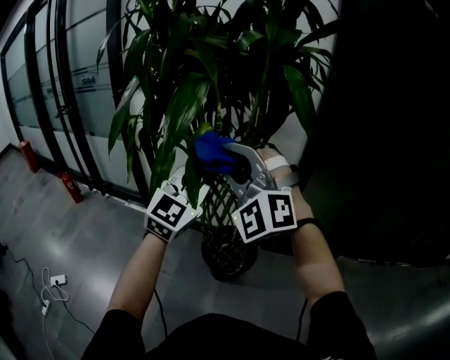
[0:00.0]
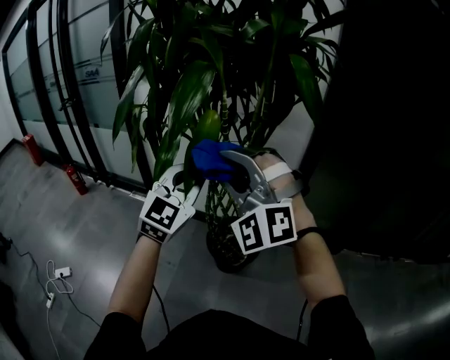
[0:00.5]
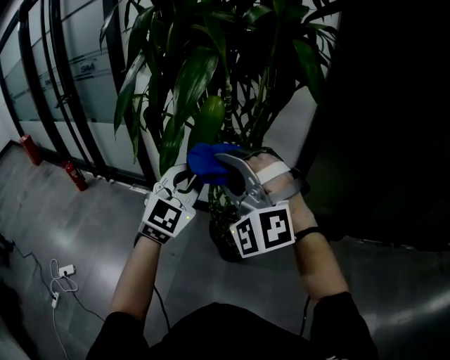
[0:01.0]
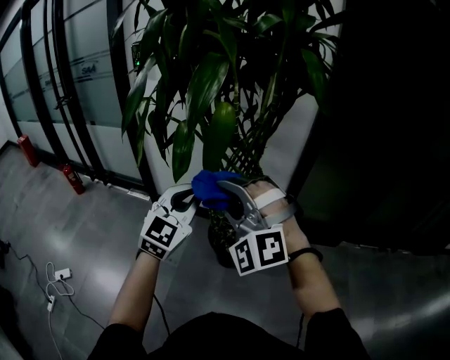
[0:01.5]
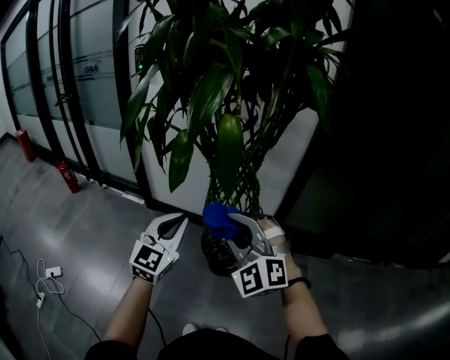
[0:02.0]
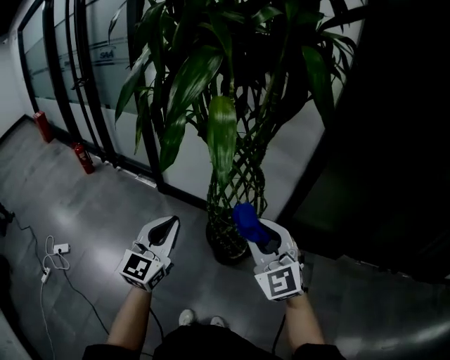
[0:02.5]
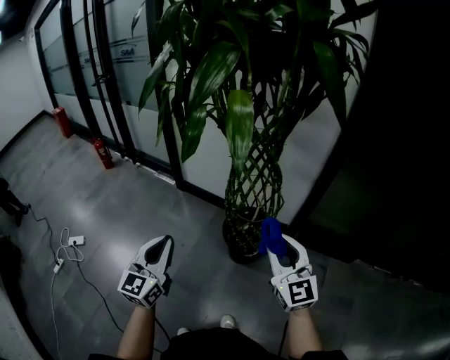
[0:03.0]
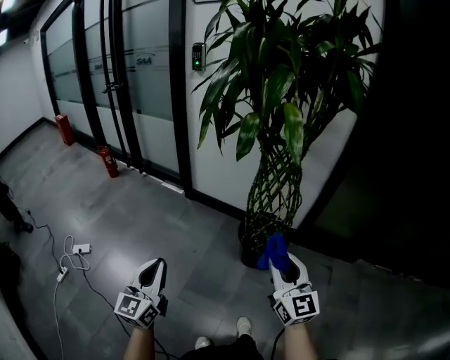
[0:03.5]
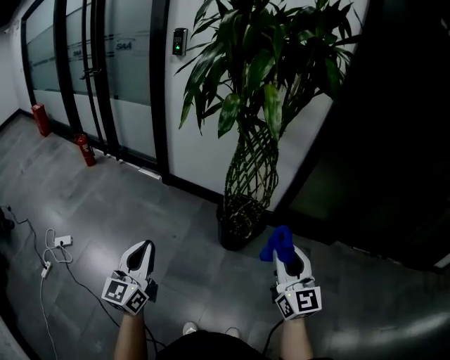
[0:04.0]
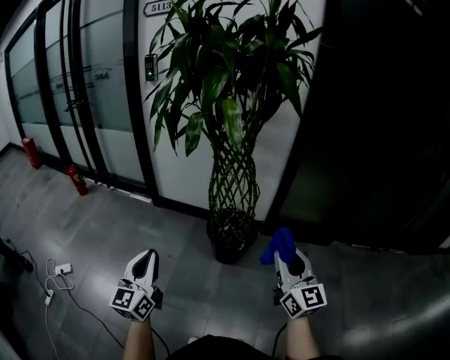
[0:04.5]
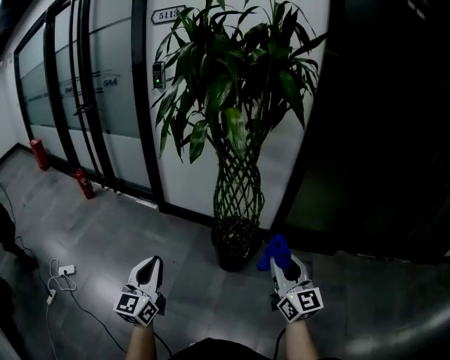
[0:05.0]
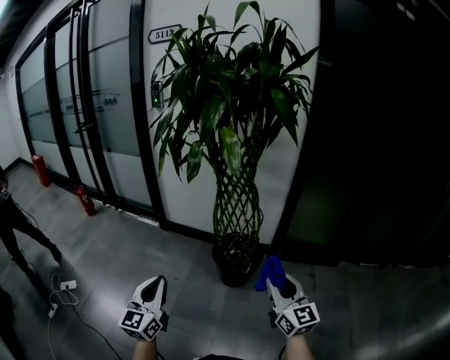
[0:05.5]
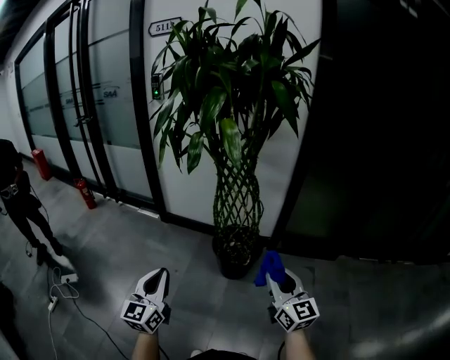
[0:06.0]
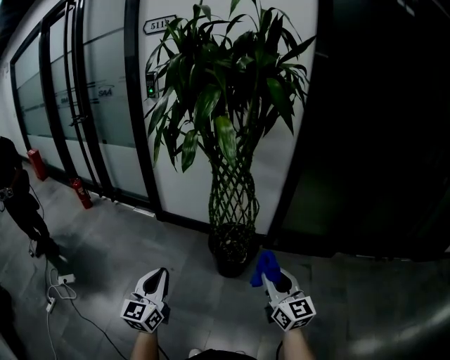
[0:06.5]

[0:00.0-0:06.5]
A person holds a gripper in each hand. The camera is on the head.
0:00.0 to 0:02.0: The left gripper goes approximately 20 cm downward, to the left and backward, while the right gripper travels downward and backward by approximately 15 cm.
0:02.0 to 0:04.5: The left gripper is displaced backward and to the left by about 30 cm, and turns by roughly 30 degrees. Meanwhile the right gripper moves backward and to the right, roughly 25 cm, and twists roughly 60 degrees clockwise, seen from behind.
0:04.5 to 0:06.5: The right gripper is displaced downward by some 5 cm.

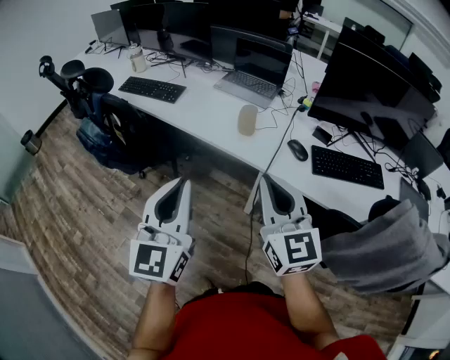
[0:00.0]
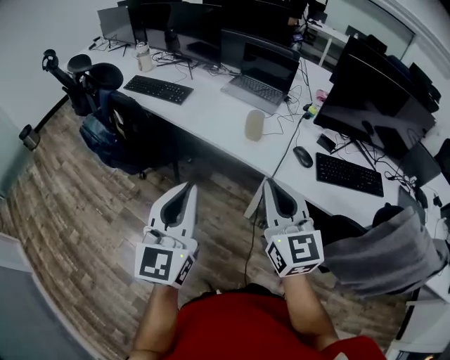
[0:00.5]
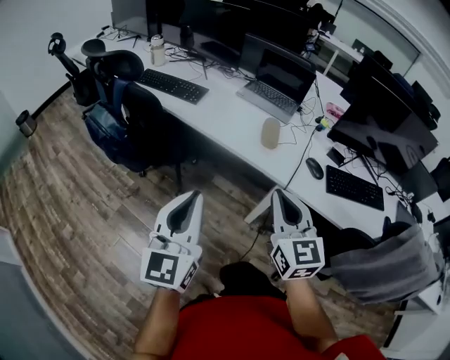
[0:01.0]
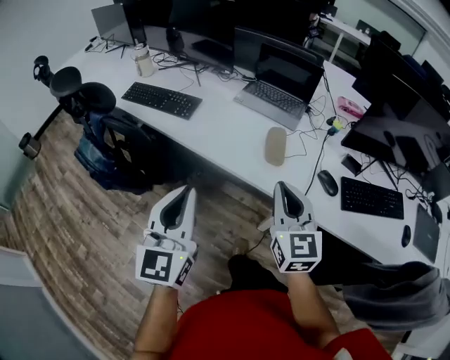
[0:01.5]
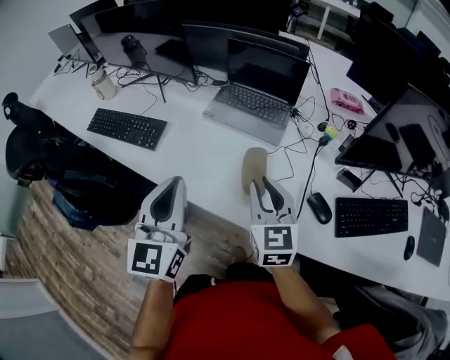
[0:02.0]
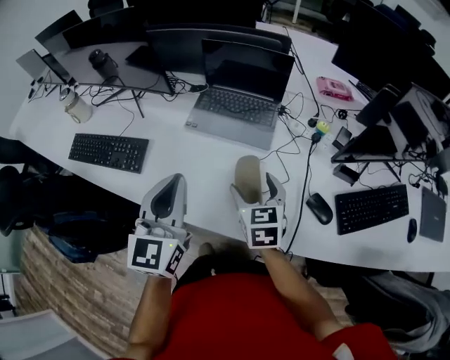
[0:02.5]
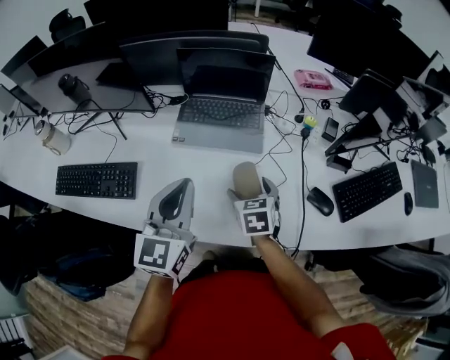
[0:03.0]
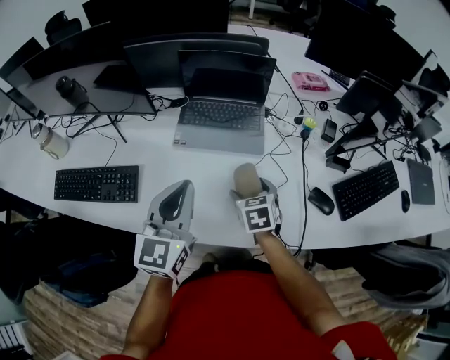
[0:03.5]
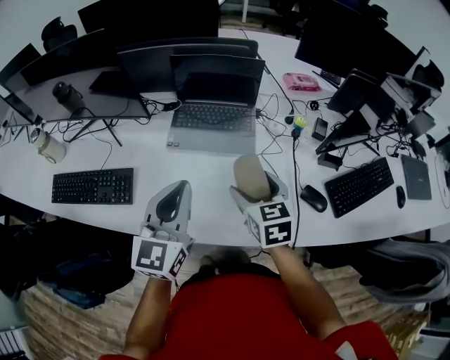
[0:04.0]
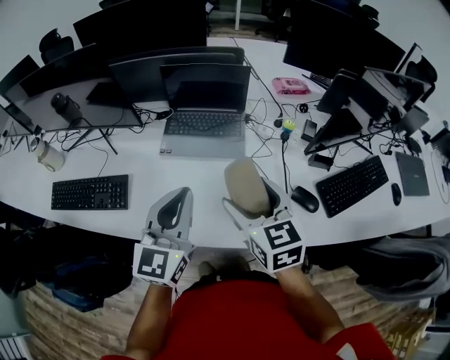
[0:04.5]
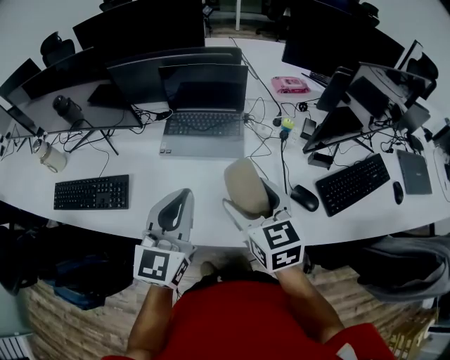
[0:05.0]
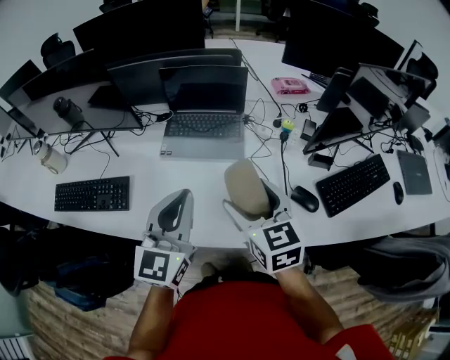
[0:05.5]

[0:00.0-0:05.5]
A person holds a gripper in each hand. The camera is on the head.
0:00.0 to 0:02.0: The two grippers go approximately 35 cm forward.
0:02.0 to 0:03.5: The left gripper travels forward by approximately 15 cm, and turns by roughly 30 degrees, while the right gripper is displaced downward and forward by some 20 cm, points its fingers about 30 degrees further downward, and opens.
0:03.5 to 0:05.5: The right gripper goes some 20 cm upward, and swivels about 30 degrees. The left gripper goes some 5 cm to the right.

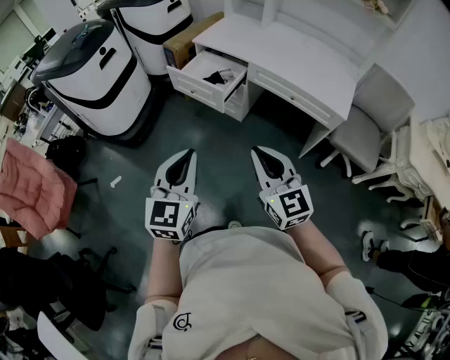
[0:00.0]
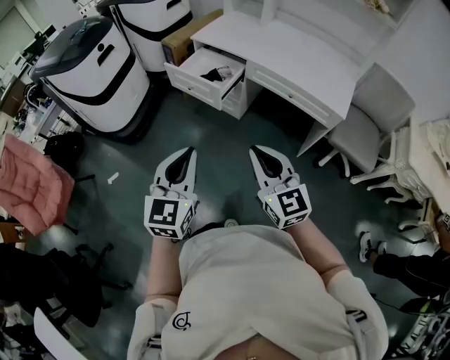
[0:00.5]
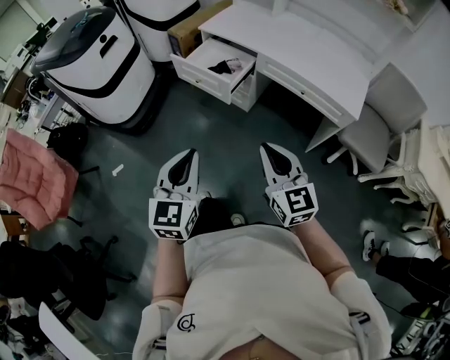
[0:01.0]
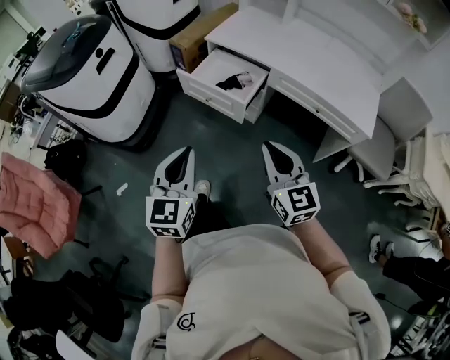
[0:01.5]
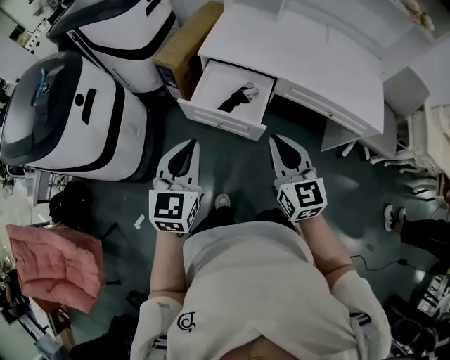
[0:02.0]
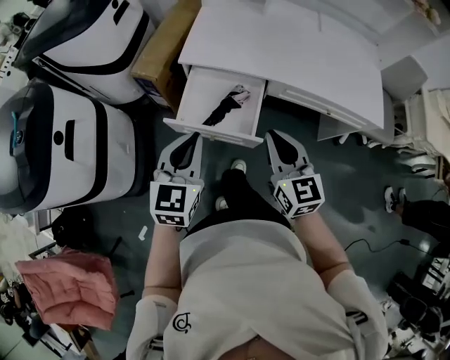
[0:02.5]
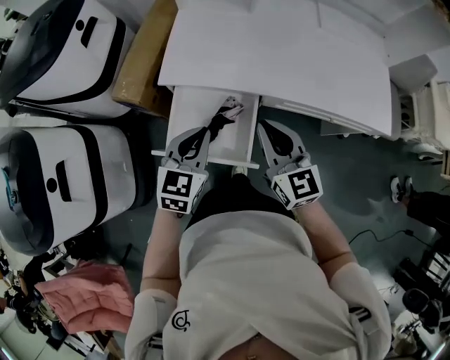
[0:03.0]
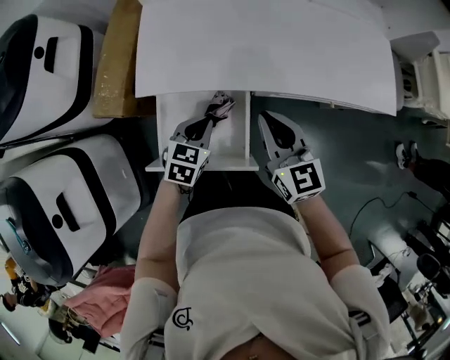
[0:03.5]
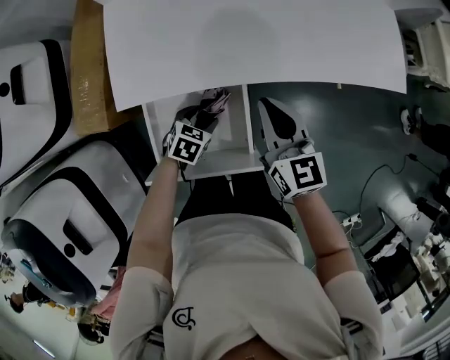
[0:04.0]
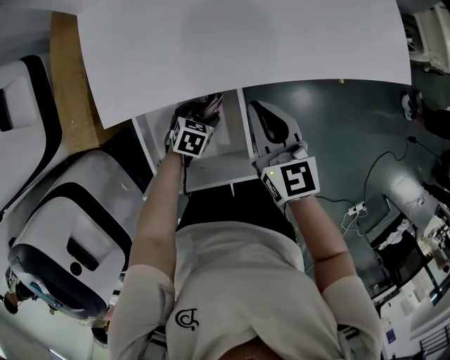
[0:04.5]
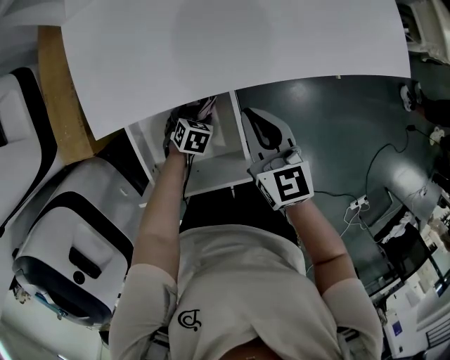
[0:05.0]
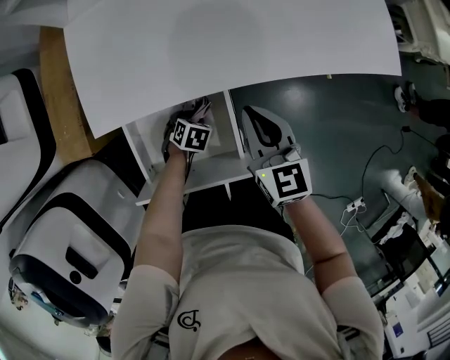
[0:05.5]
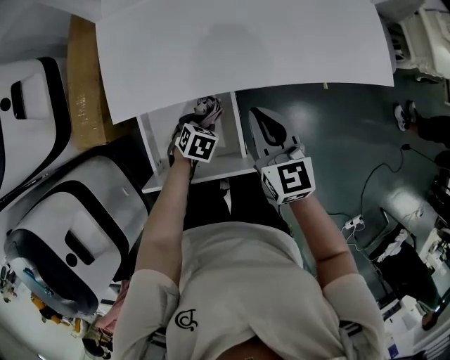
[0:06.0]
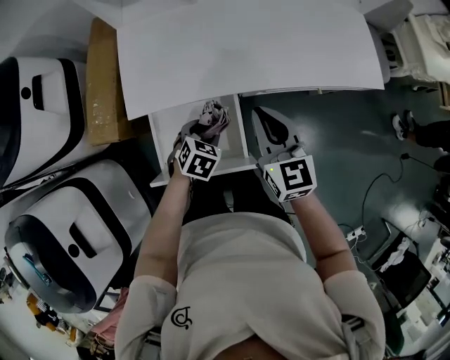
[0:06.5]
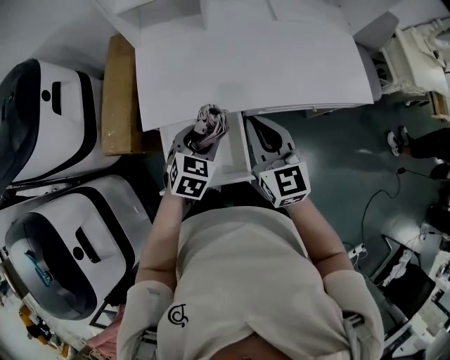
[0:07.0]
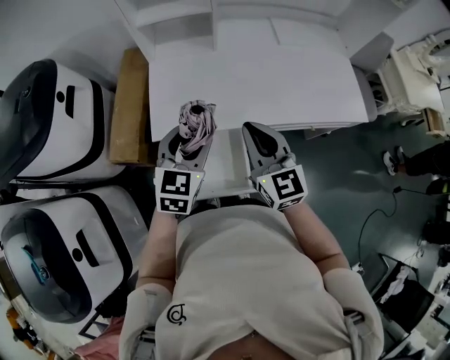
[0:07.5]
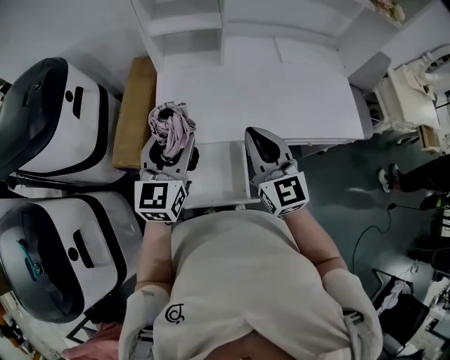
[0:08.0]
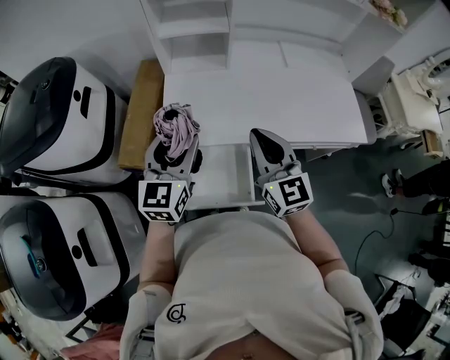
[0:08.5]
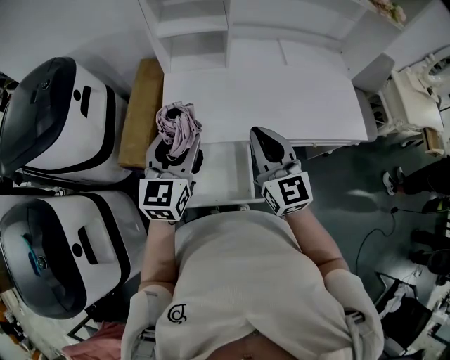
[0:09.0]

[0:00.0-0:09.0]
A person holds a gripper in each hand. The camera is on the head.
0:00.0 to 0:02.0: The right gripper travels forward by some 35 cm, and swivels some 20 degrees. The left gripper shifts some 40 cm forward and to the left.
0:02.0 to 0:04.5: The right gripper shifts by roughly 40 cm, and rotates some 30 degrees; the left gripper travels downward by roughly 40 cm, angles its fingers downward, by roughly 50 degrees, and opens up.
0:04.5 to 0:07.0: The left gripper goes about 30 cm upward, and rotates roughly 30 degrees; the right gripper travels upward by about 15 cm.
0:07.0 to 0:09.0: The left gripper moves upward and to the left, about 20 cm, and tilts its fingers about 40 degrees upward. The right gripper goes approximately 10 cm upward.

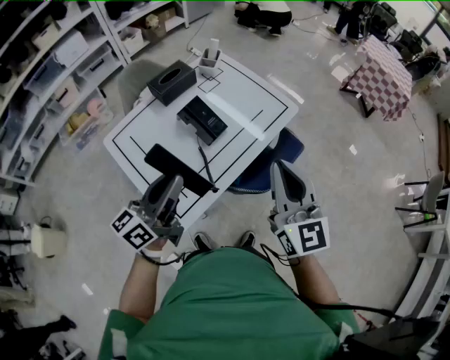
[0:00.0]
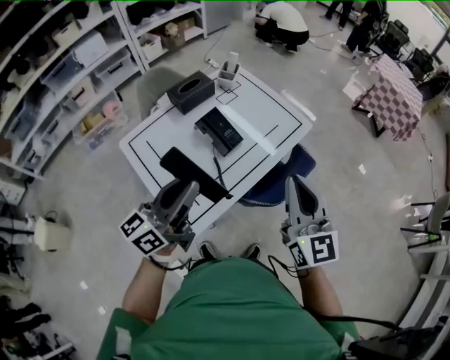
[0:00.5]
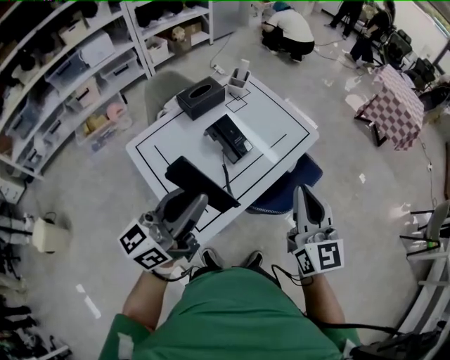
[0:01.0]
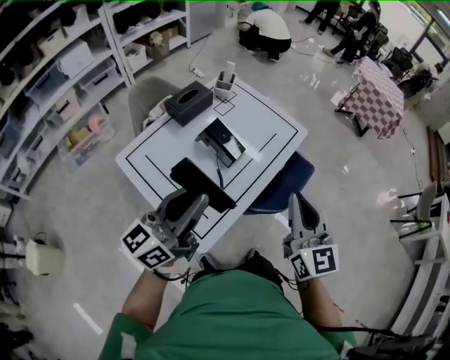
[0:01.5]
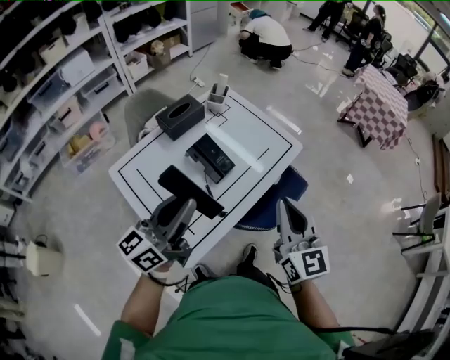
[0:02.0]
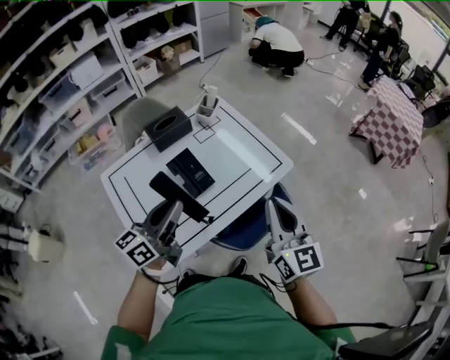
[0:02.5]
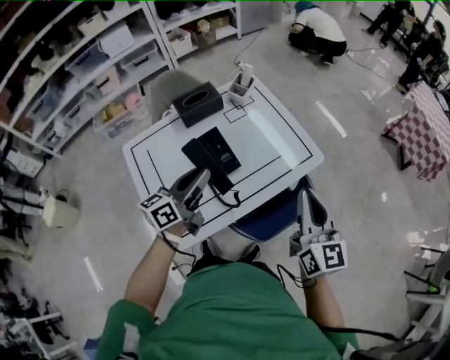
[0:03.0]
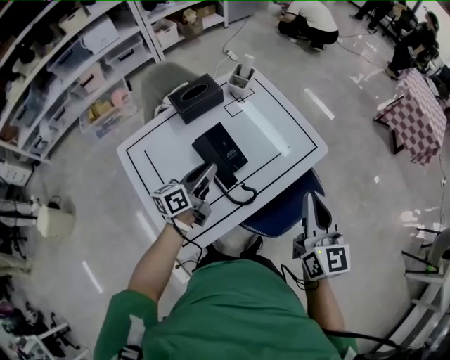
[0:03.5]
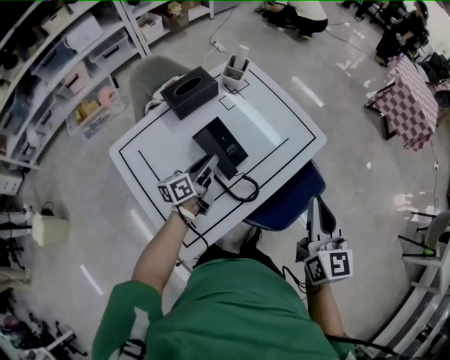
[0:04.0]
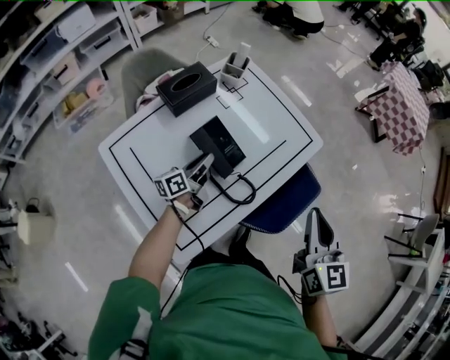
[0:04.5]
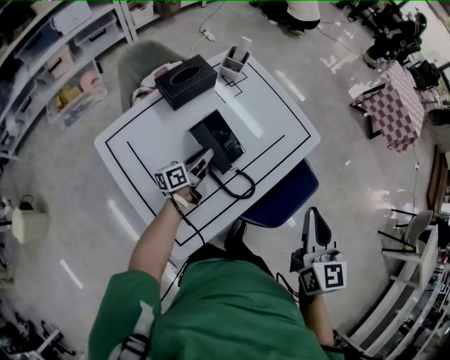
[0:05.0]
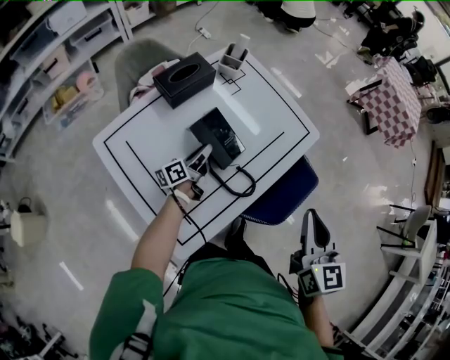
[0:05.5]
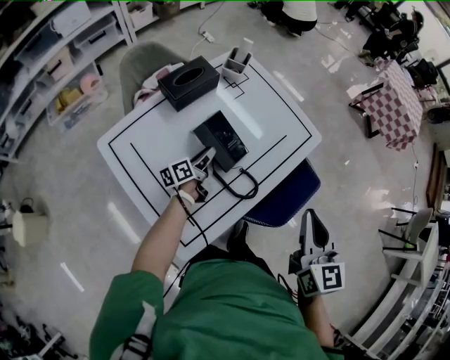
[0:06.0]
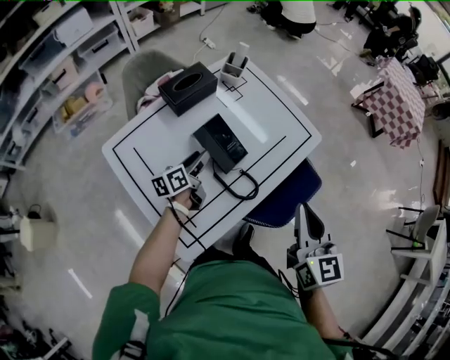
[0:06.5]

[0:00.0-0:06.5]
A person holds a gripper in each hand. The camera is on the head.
0:00.0 to 0:02.0: The left gripper ends up roughly 5 cm from where it was.
0:02.0 to 0:04.5: The right gripper goes roughly 10 cm forward and downward. The left gripper moves downward and forward, approximately 40 cm, and turns by roughly 30 degrees.
0:04.5 to 0:06.5: The right gripper changes place by roughly 5 cm; the left gripper opens its fingers.
